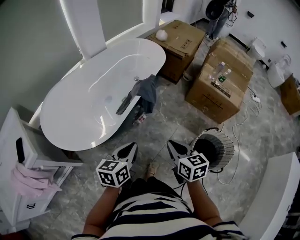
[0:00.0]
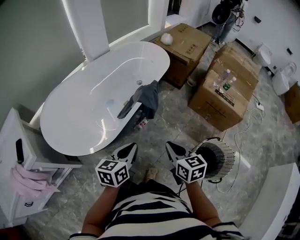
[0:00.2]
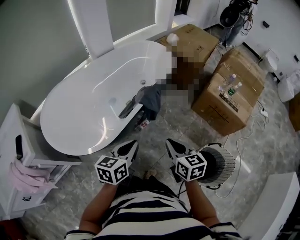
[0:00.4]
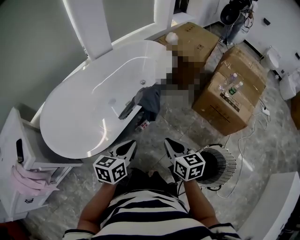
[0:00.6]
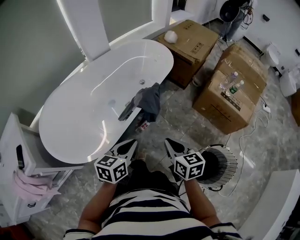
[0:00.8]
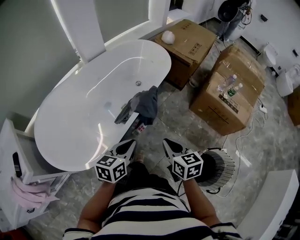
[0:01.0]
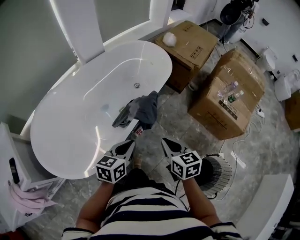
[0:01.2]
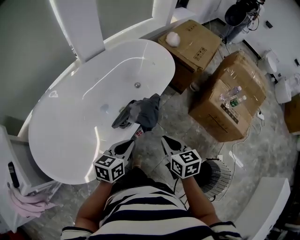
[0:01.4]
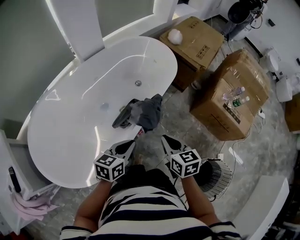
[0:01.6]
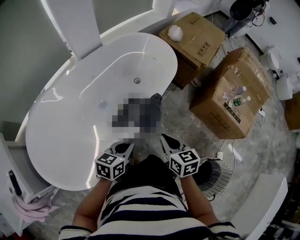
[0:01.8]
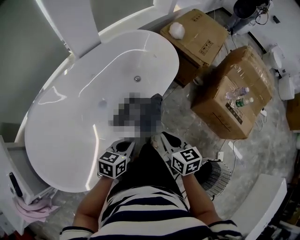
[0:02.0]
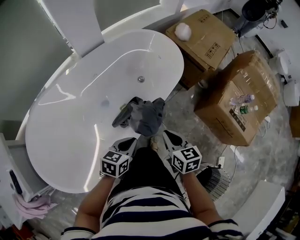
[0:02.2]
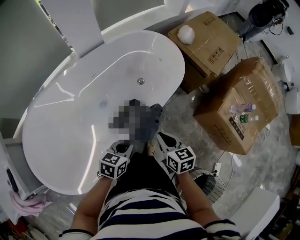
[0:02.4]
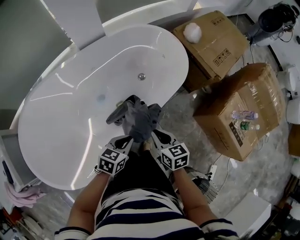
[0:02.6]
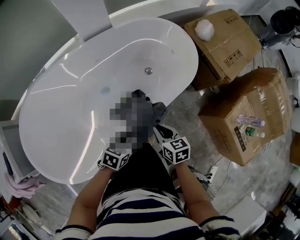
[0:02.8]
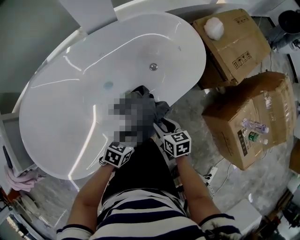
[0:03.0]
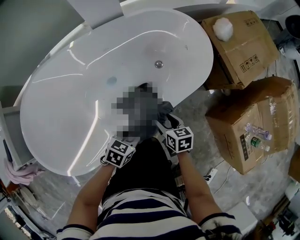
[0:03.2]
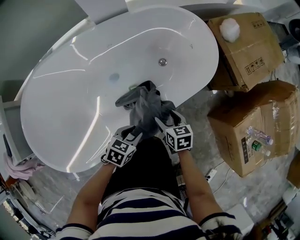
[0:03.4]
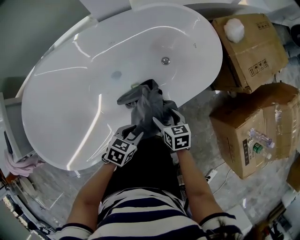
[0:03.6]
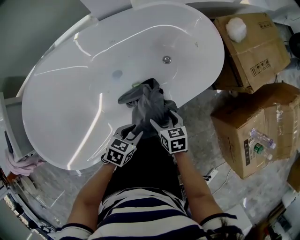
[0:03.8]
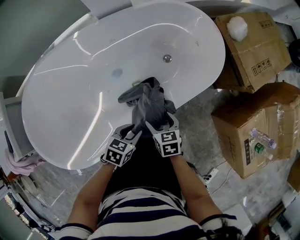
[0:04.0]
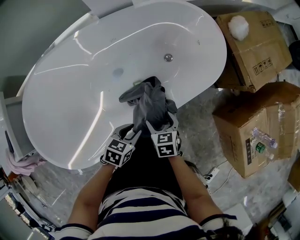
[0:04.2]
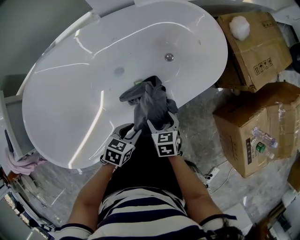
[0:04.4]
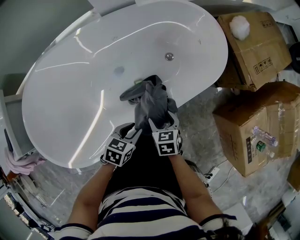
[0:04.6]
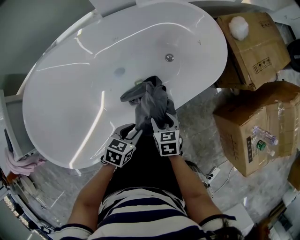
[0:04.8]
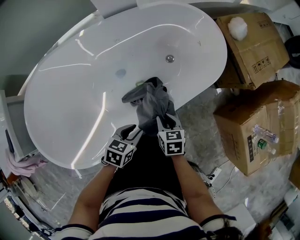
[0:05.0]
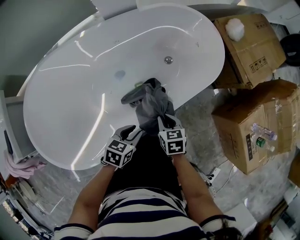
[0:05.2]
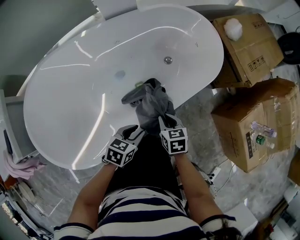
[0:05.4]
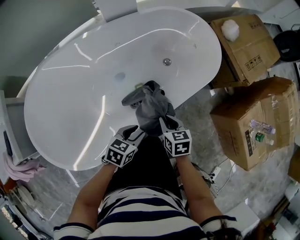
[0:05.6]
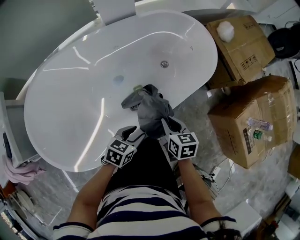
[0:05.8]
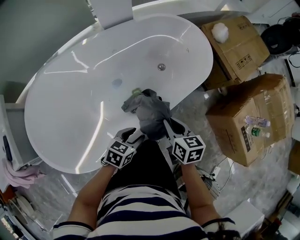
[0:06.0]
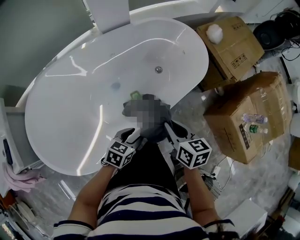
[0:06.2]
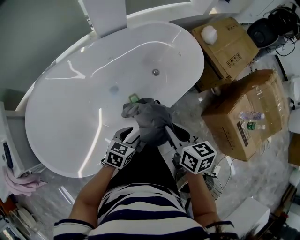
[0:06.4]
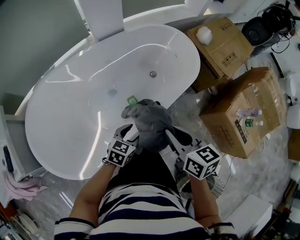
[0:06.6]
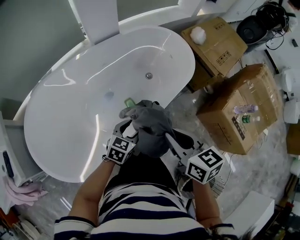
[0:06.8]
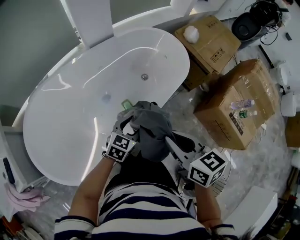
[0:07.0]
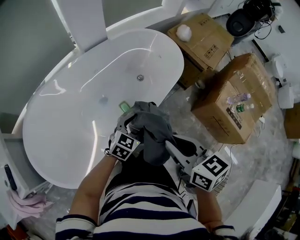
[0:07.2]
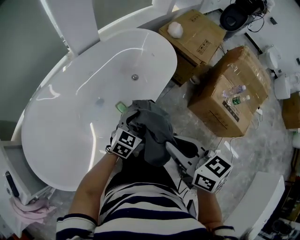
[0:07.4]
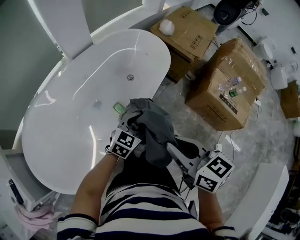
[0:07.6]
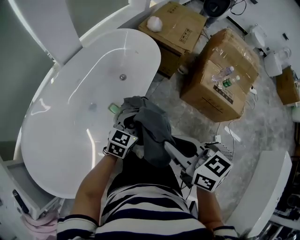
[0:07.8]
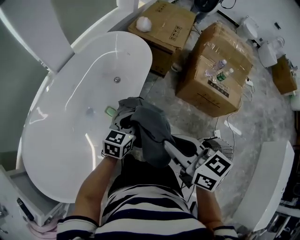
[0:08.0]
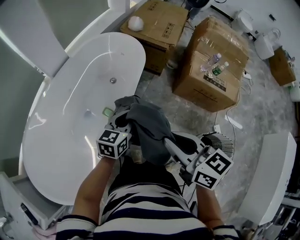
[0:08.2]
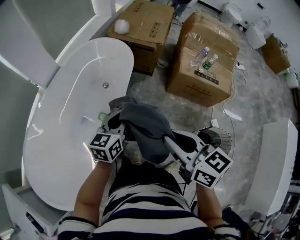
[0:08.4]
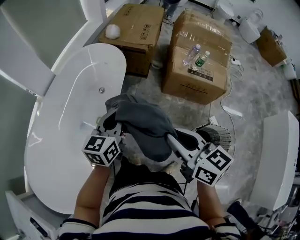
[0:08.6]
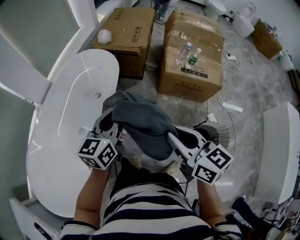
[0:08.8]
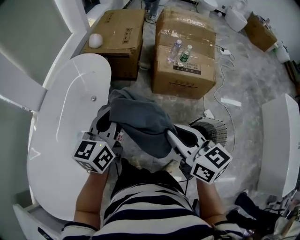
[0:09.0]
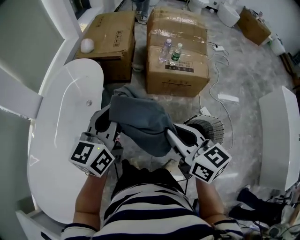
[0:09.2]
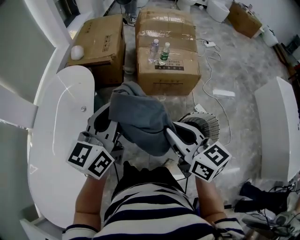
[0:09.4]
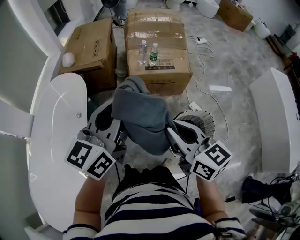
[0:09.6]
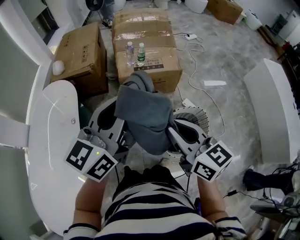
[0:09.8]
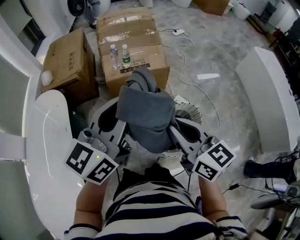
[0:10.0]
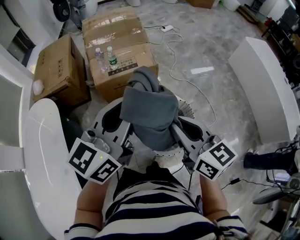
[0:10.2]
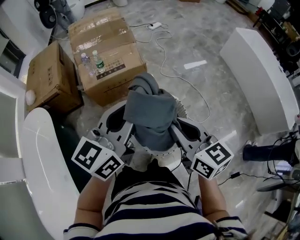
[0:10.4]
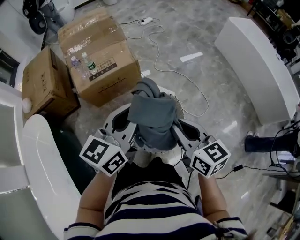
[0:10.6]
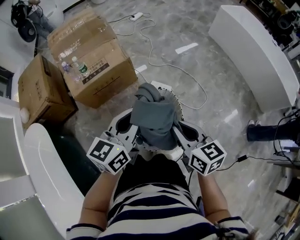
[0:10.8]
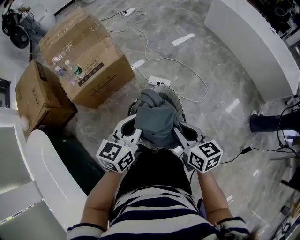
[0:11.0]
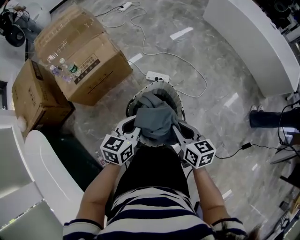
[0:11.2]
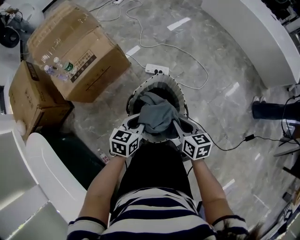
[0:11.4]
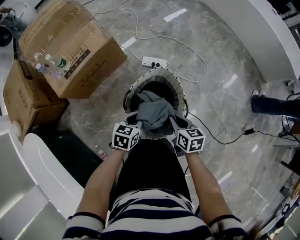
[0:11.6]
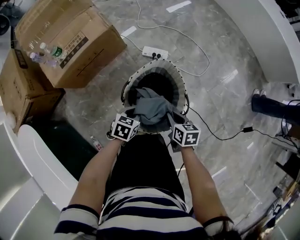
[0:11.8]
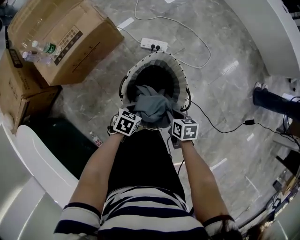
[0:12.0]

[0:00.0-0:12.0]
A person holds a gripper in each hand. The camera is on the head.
0:00.0 to 0:01.6: The grippers both shift forward by about 25 cm.
0:01.6 to 0:03.0: The right gripper travels forward and downward by approximately 25 cm, swivels roughly 20 degrees, and opens its fingers. Meanwhile the left gripper shifts roughly 20 cm downward and forward, turns by about 20 degrees, and opens.
0:03.0 to 0:04.4: The right gripper changes place by approximately 5 cm, and opens up.
0:04.4 to 0:06.0: The left gripper moves about 5 cm, while the right gripper heads upward, covering approximately 15 cm, turns by approximately 20 degrees, and closes up.
0:06.0 to 0:07.6: The right gripper shifts approximately 25 cm upward and backward, while the left gripper is displaced upward and to the right by about 10 cm, and swivels some 40 degrees.
0:07.6 to 0:09.0: The right gripper heads to the right, covering roughly 20 cm, and swivels about 30 degrees. The left gripper heads upward and to the right, covering about 25 cm, and swivels approximately 20 degrees.
0:09.0 to 0:10.4: The right gripper changes place by some 35 cm, and swivels about 30 degrees; the left gripper shifts by approximately 40 cm, and swivels approximately 40 degrees.
0:10.4 to 0:12.0: The two grippers go some 50 cm downward. The left gripper tips its fingers downward by about 60 degrees. The right gripper points its fingers approximately 40 degrees further downward.

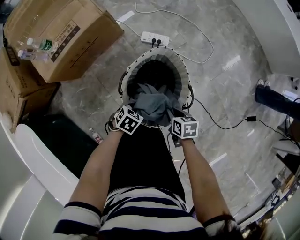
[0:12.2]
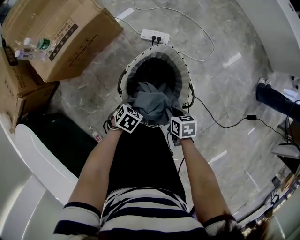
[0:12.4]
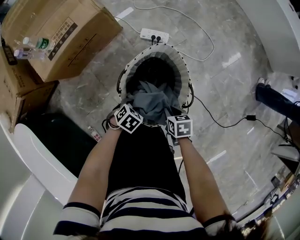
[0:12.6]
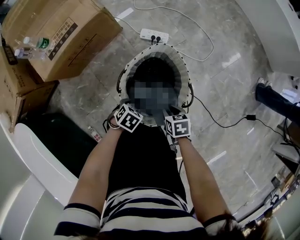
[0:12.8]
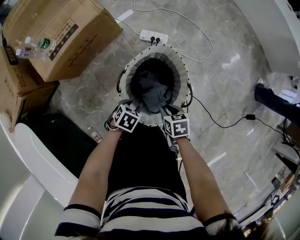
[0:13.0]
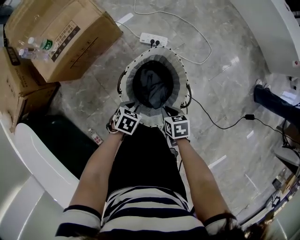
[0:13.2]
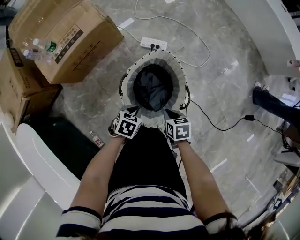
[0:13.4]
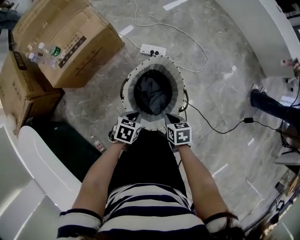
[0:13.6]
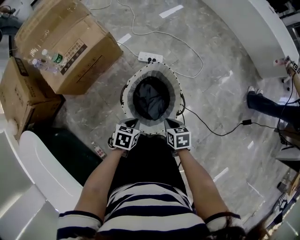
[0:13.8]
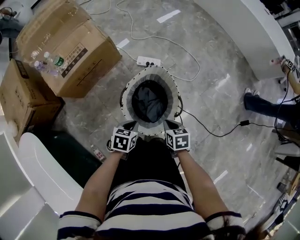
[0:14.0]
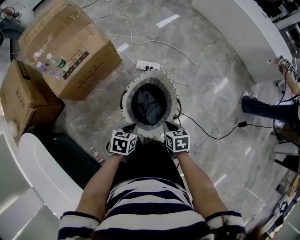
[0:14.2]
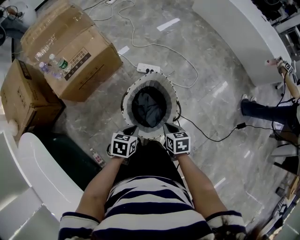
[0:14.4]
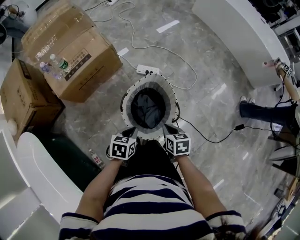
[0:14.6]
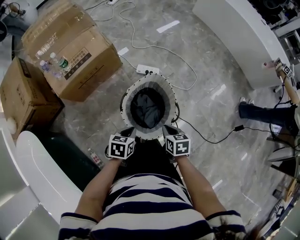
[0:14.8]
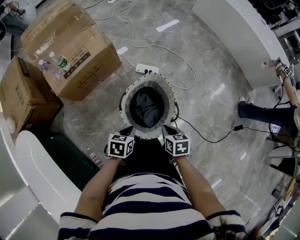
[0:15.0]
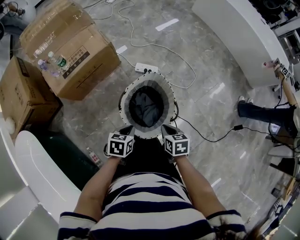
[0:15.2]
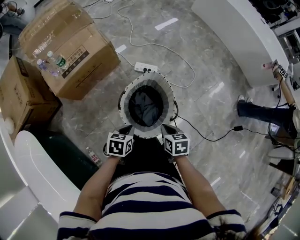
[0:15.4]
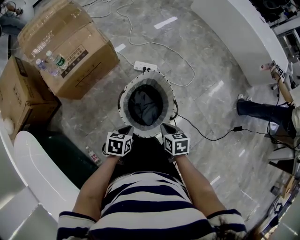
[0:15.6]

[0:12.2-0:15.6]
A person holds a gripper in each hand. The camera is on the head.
0:12.2 to 0:13.8: The grippers both shift upward by about 10 cm. The left gripper changes its angle by some 20 degrees, and opens and closes again.
0:13.8 to 0:15.6: The right gripper travels upward by about 5 cm. Meanwhile the left gripper changes place by some 5 cm.
